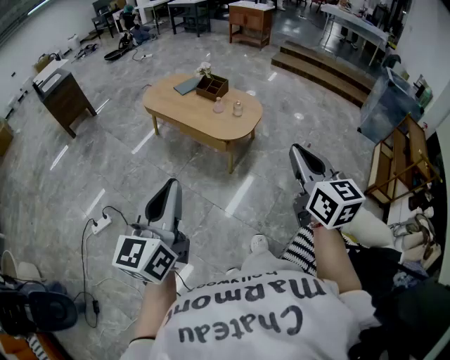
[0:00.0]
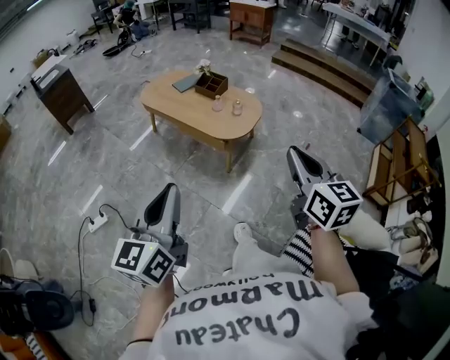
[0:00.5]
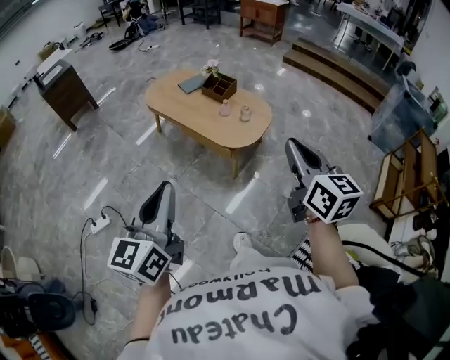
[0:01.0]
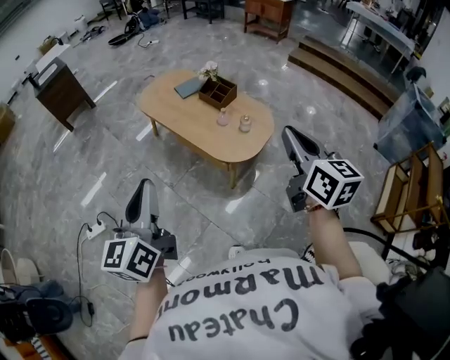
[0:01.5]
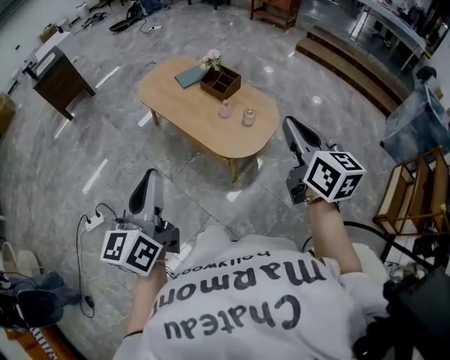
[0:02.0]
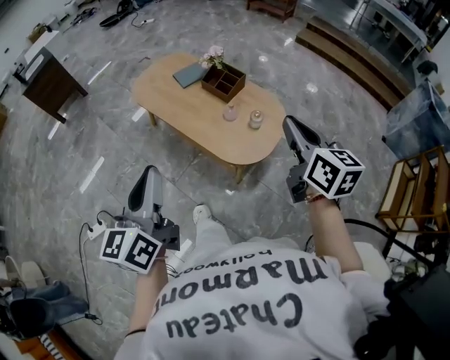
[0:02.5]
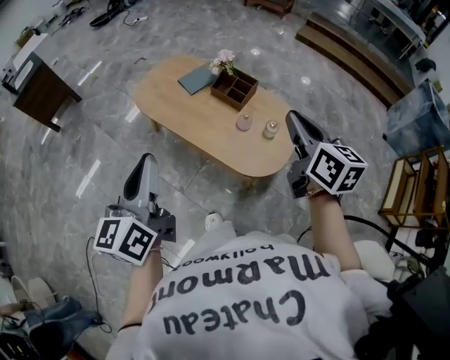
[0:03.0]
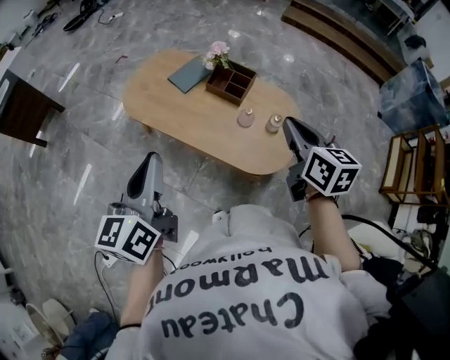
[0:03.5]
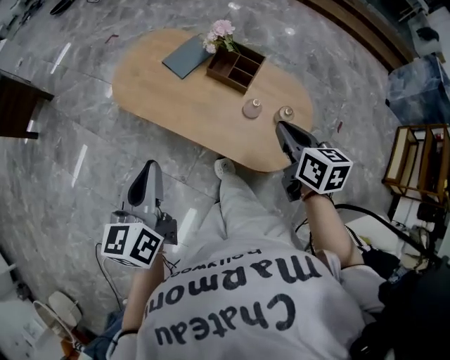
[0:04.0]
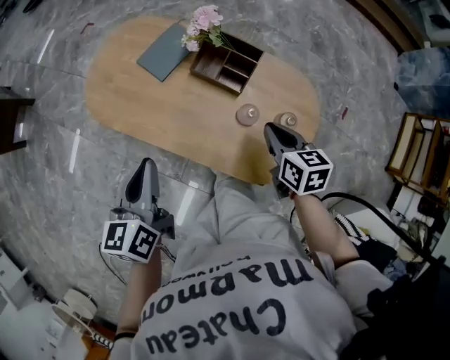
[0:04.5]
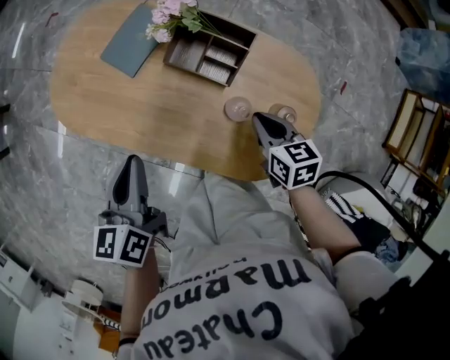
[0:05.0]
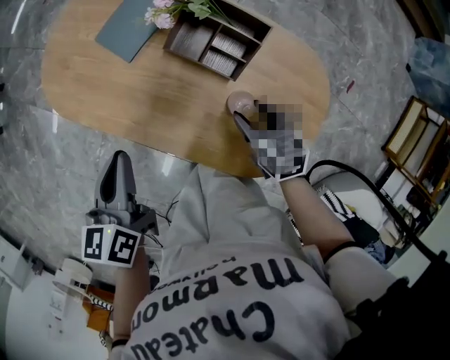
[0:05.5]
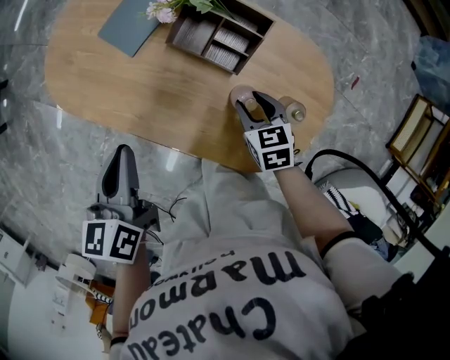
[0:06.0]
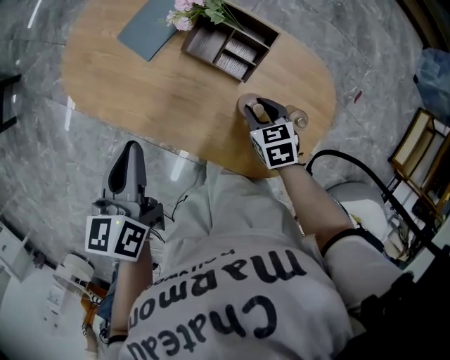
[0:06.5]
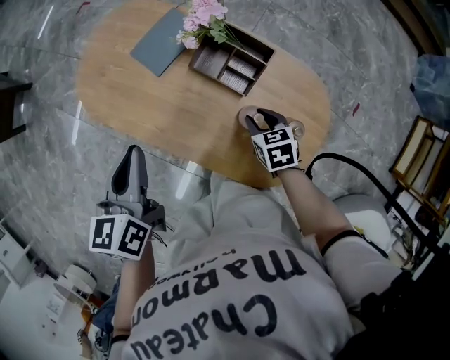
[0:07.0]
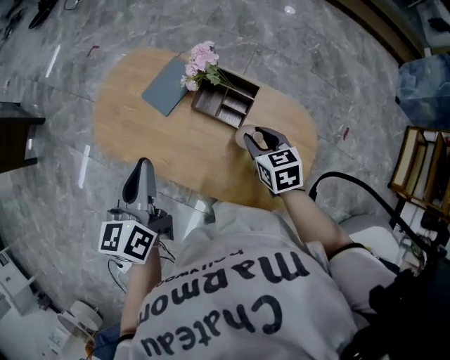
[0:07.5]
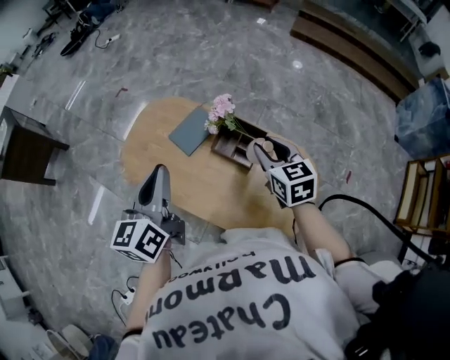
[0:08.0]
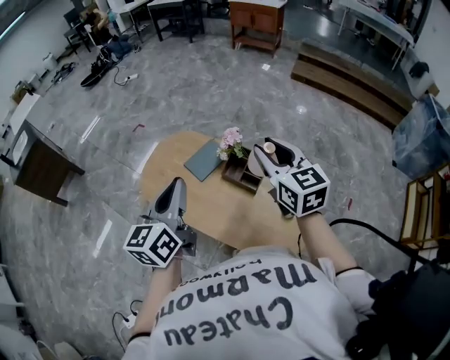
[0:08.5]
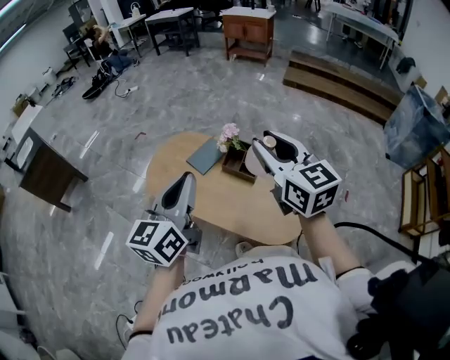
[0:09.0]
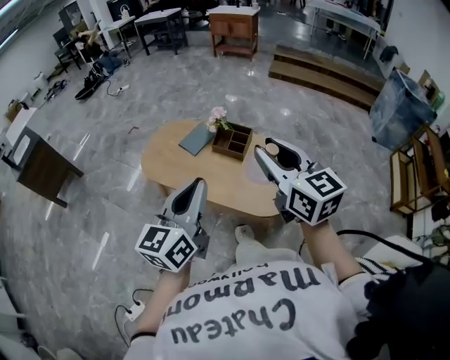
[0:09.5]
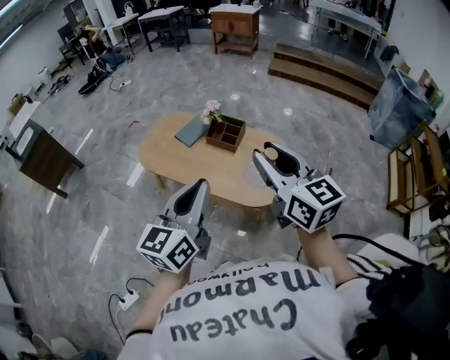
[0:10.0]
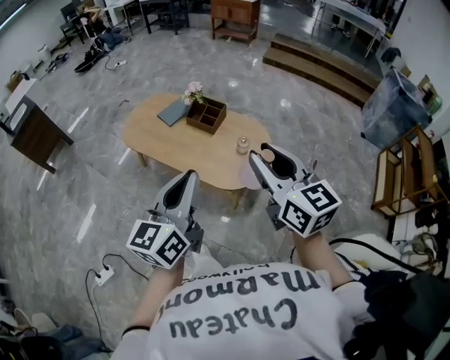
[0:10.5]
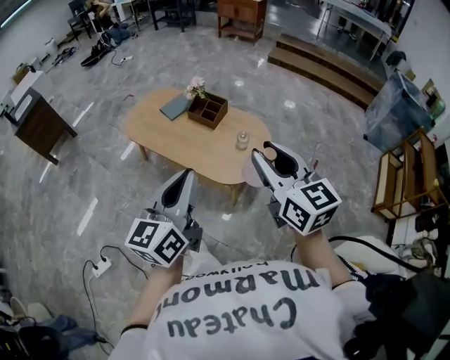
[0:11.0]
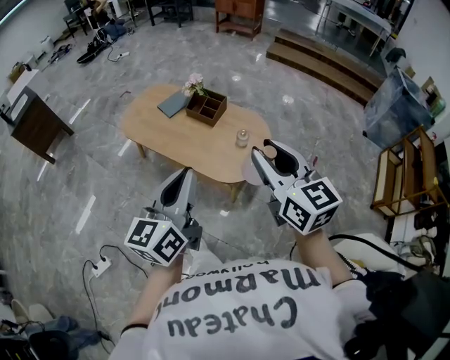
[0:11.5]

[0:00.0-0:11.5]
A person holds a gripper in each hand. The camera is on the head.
0:00.0 to 0:02.0: Both grippers move forward, approximately 35 cm.
0:02.0 to 0:04.0: The left gripper travels forward and to the left by roughly 40 cm, and swivels roughly 20 degrees; the right gripper moves forward, downward and to the left, approximately 40 cm, and turns by about 30 degrees.
0:04.0 to 0:06.0: The left gripper is displaced forward and downward by about 30 cm, and rotates about 20 degrees. Meanwhile the right gripper travels downward and forward by roughly 35 cm, rotates roughly 30 degrees, and opens.
0:06.0 to 0:07.5: Both grippers move upward, about 15 cm.
0:07.5 to 0:09.5: The right gripper moves upward and backward, roughly 50 cm, and points its fingers roughly 40 degrees further upward. Meanwhile the left gripper travels backward and upward by roughly 40 cm, and turns by roughly 30 degrees.
0:09.5 to 0:11.5: Both grippers travel together to the right and backward, some 20 cm.

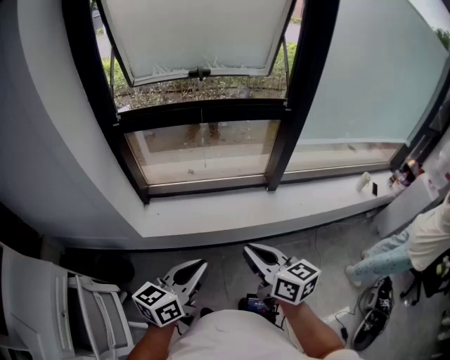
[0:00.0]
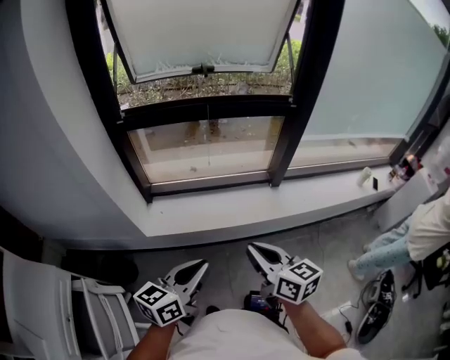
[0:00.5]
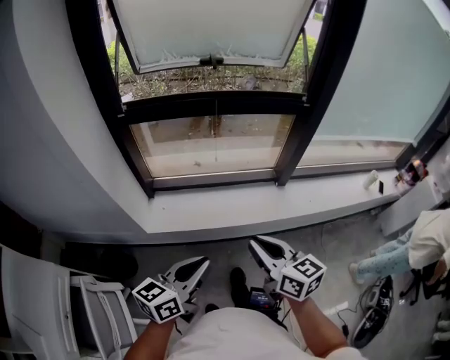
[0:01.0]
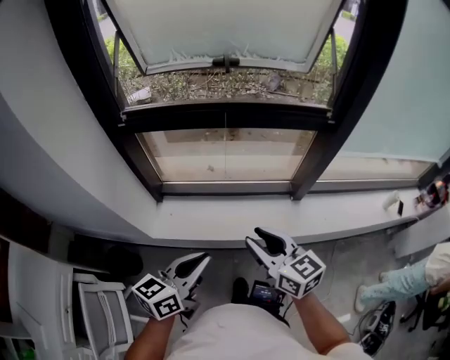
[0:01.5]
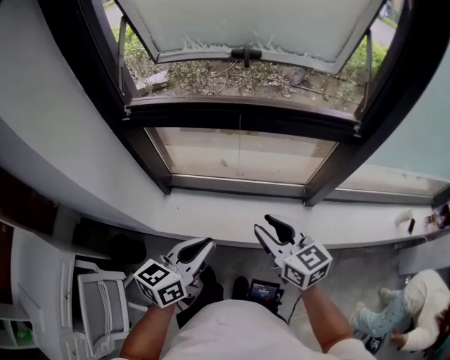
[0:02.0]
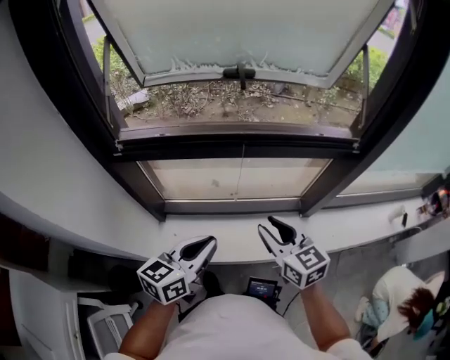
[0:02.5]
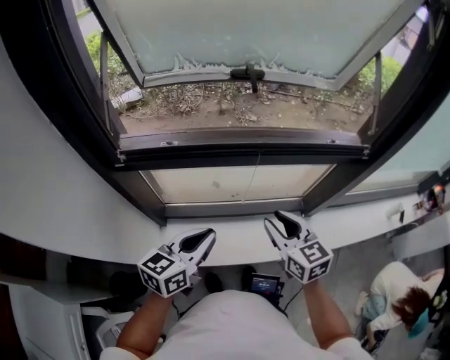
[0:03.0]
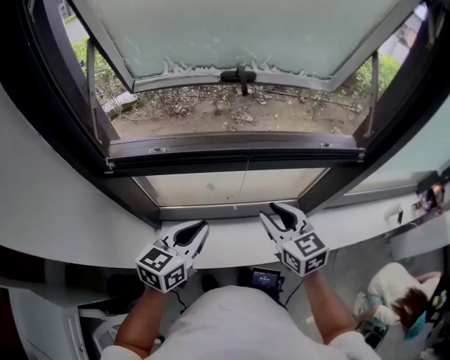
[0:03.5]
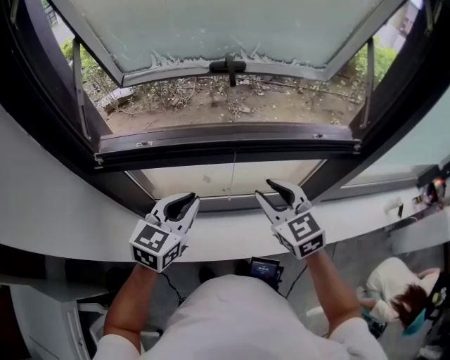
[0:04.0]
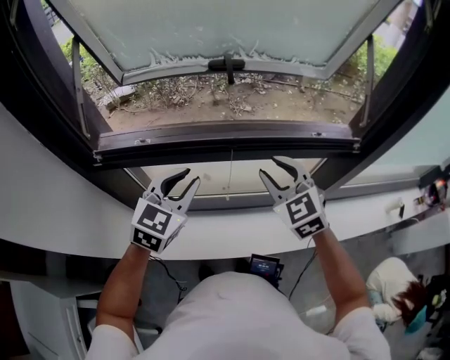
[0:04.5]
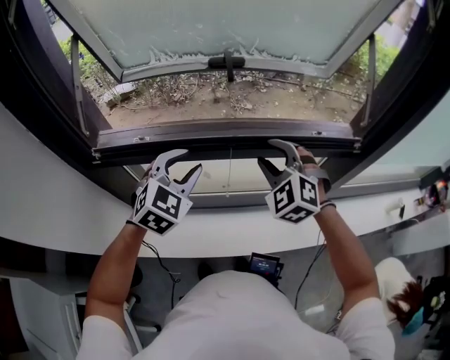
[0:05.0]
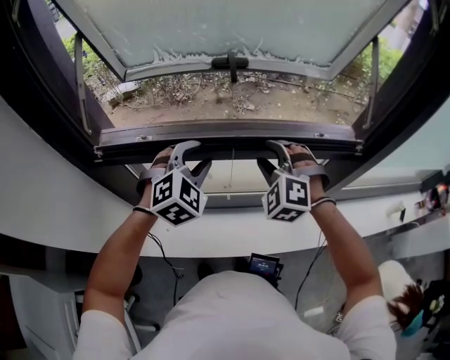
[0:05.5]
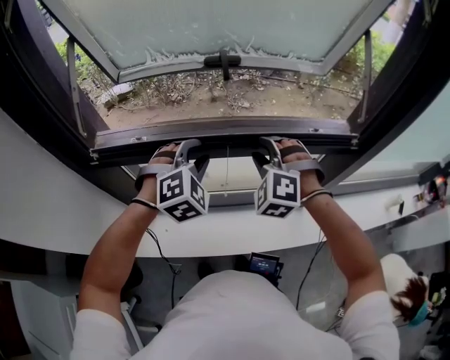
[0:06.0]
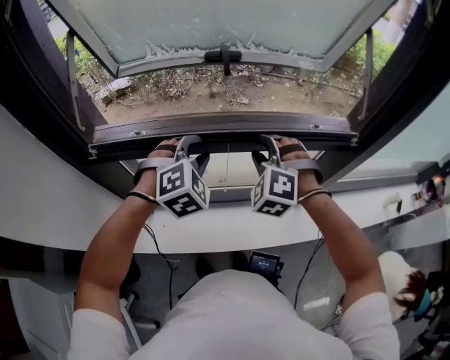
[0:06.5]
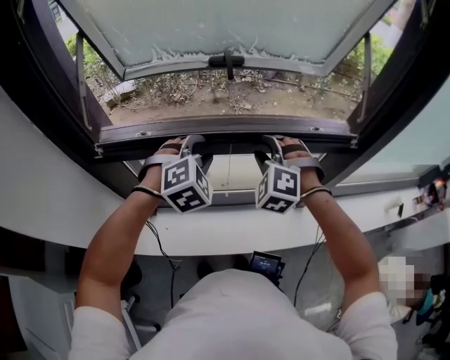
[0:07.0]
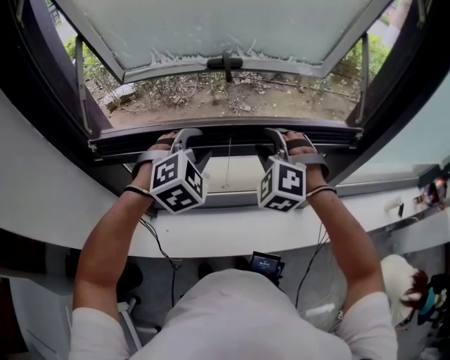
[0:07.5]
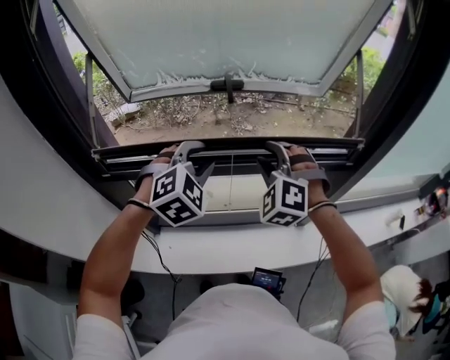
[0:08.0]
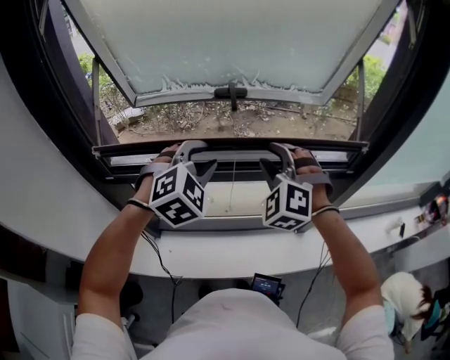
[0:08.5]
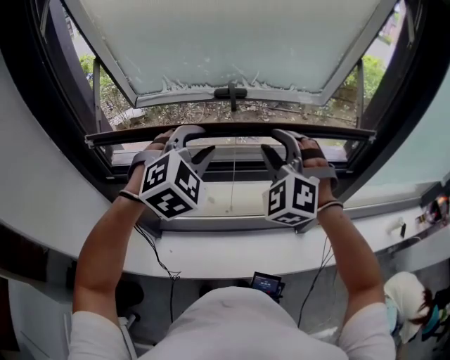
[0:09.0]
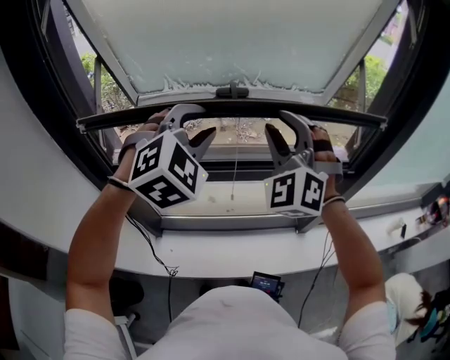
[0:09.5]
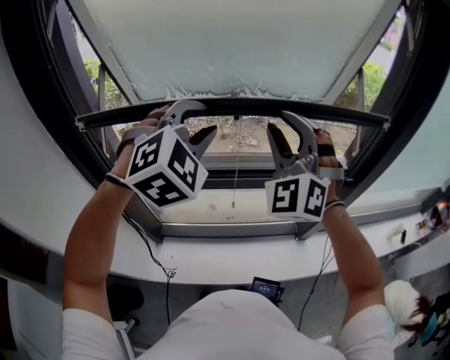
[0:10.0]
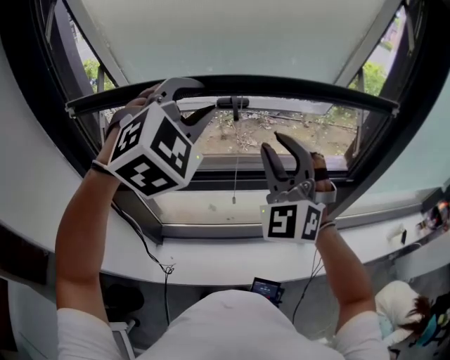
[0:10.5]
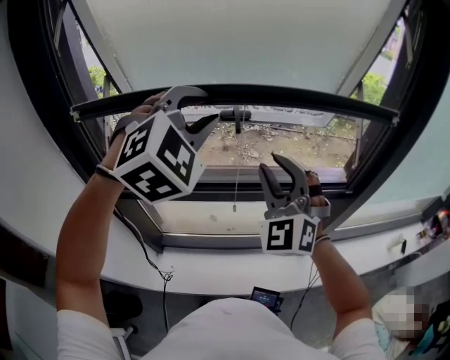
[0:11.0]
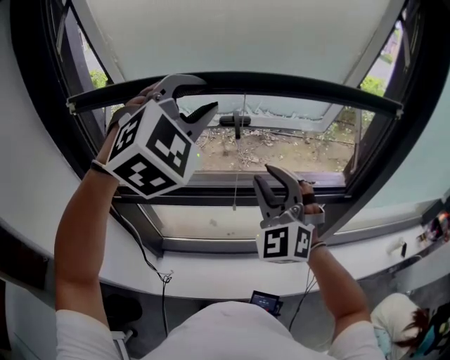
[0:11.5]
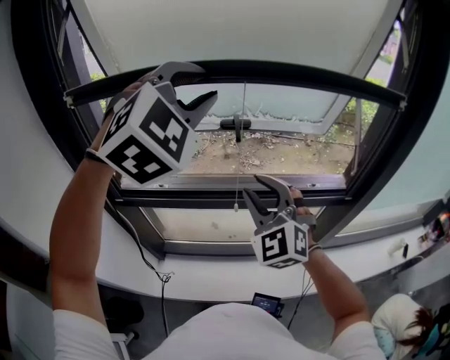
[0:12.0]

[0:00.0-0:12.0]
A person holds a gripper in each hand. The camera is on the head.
0:00.0 to 0:02.0: The grippers both shift forward by some 25 cm. The right gripper rotates roughly 20 degrees, and opens its fingers.
0:02.0 to 0:04.0: Both grippers travel together forward, approximately 20 cm. The left gripper rotates approximately 30 degrees. Meanwhile the right gripper changes its angle by approximately 30 degrees.
0:04.0 to 0:06.0: Both grippers move forward, approximately 10 cm. The right gripper rolls counterclockwise, seen from behind, by some 50 degrees; the left gripper twists roughly 50 degrees clockwise, seen from behind, and opens its fingers.
0:06.0 to 0:08.0: Both grippers move upward, some 5 cm.
0:08.0 to 0:10.0: The grippers both shift upward by approximately 15 cm. The right gripper tilts its fingers approximately 30 degrees upward.
0:10.0 to 0:12.0: The right gripper travels downward by about 10 cm, and rotates about 20 degrees, while the left gripper travels upward by roughly 15 cm.

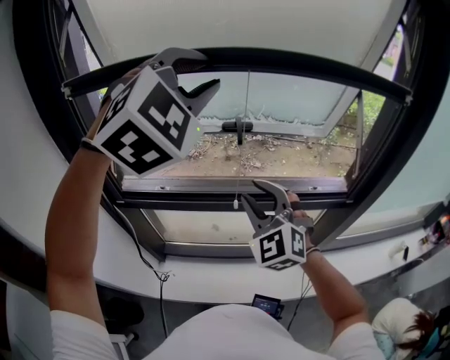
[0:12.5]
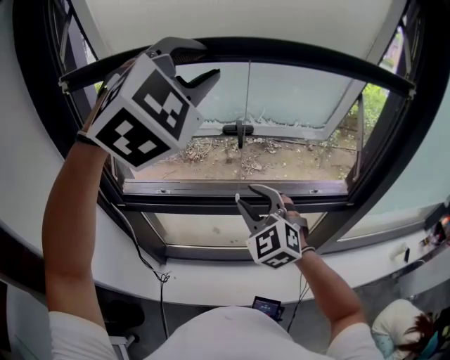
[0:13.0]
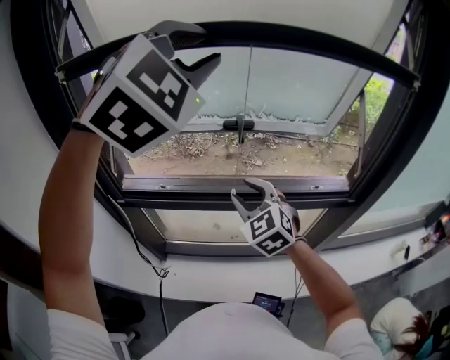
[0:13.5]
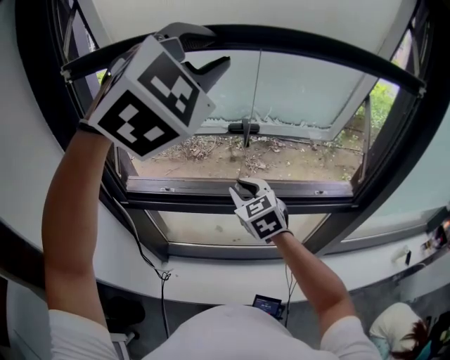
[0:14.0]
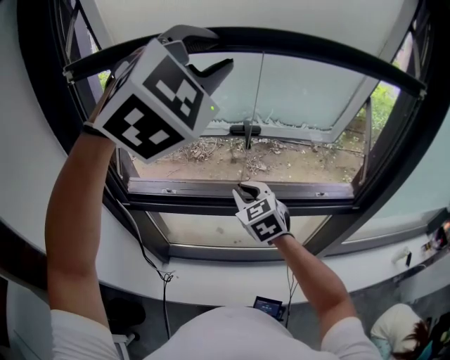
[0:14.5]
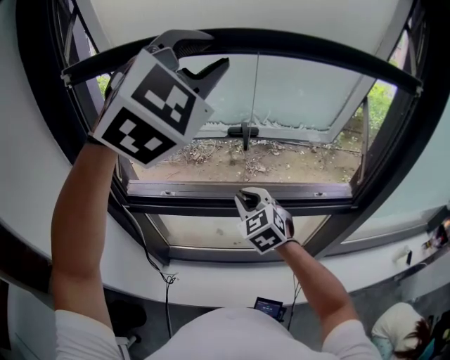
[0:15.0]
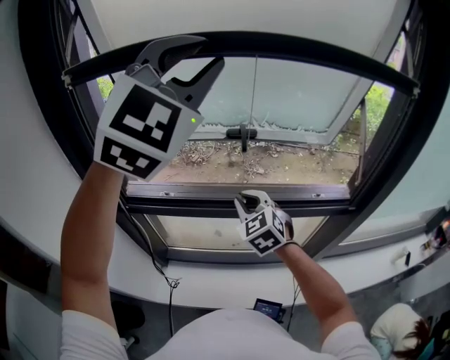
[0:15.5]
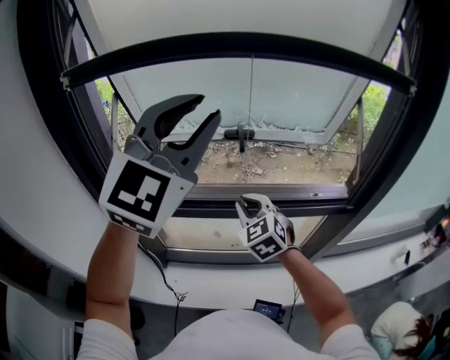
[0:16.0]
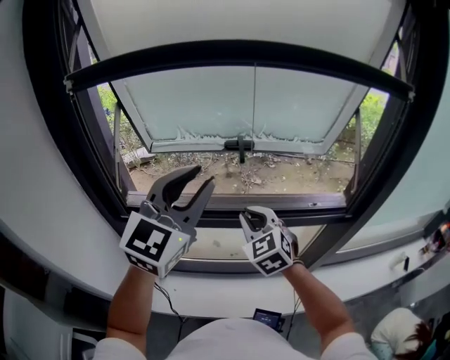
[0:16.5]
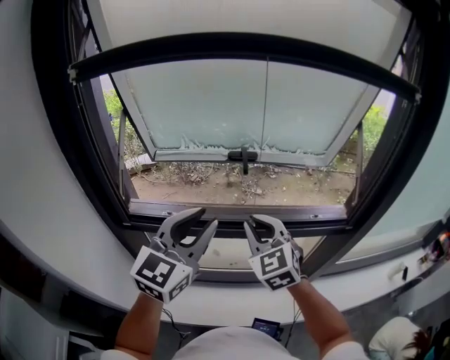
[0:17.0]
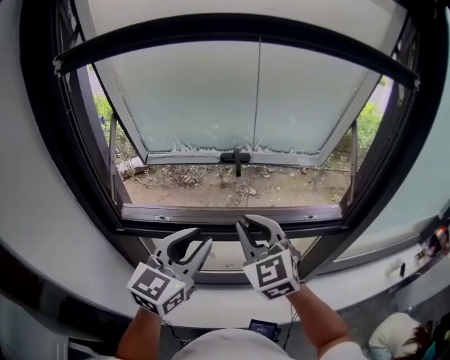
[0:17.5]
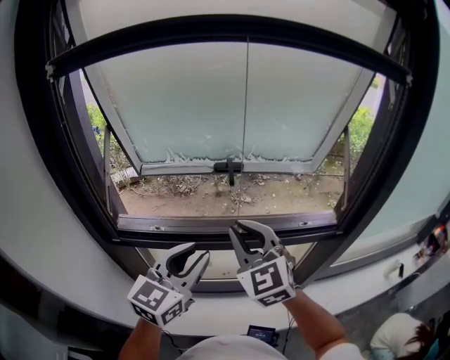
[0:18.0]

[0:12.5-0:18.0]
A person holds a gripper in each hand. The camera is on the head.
0:12.5 to 0:14.5: The right gripper heads forward and downward, covering approximately 10 cm, and rotates about 30 degrees.
0:14.5 to 0:16.0: The left gripper moves backward and downward, roughly 10 cm, and swivels approximately 30 degrees.
0:16.0 to 0:18.0: The left gripper is displaced downward by about 25 cm, and rotates some 40 degrees; the right gripper heads upward, covering about 10 cm.
